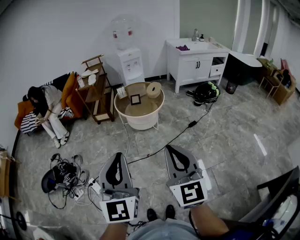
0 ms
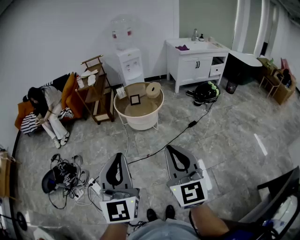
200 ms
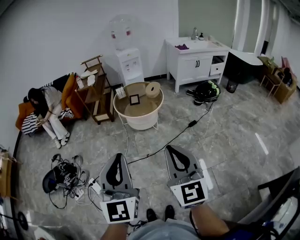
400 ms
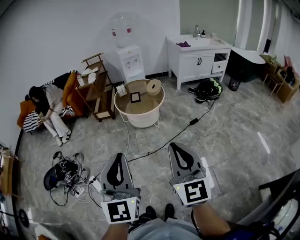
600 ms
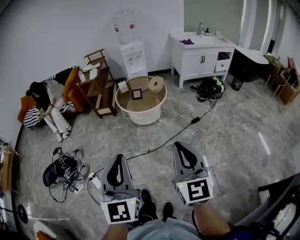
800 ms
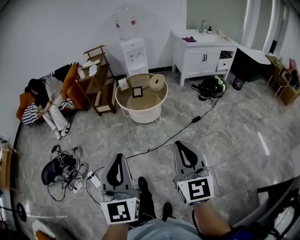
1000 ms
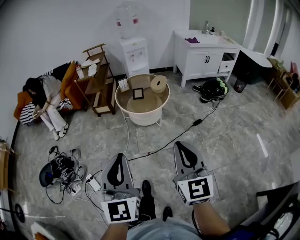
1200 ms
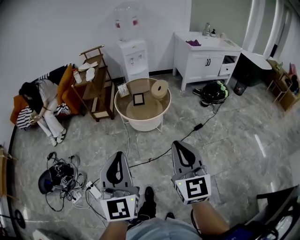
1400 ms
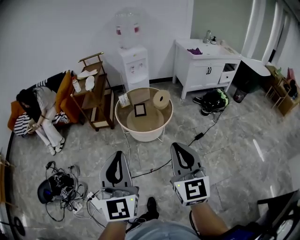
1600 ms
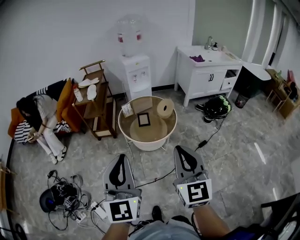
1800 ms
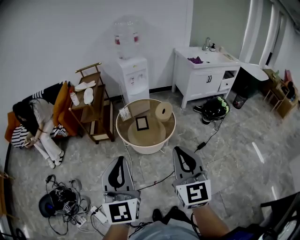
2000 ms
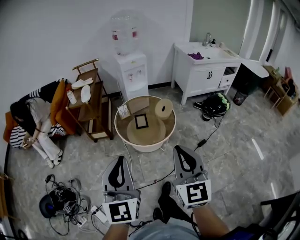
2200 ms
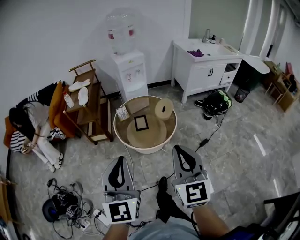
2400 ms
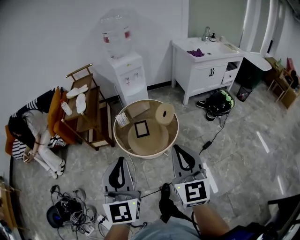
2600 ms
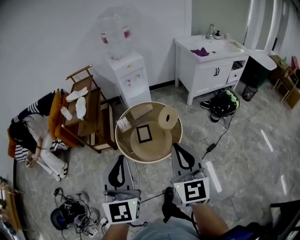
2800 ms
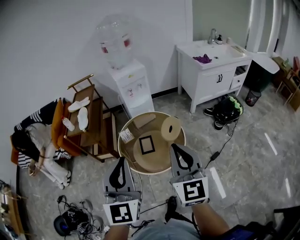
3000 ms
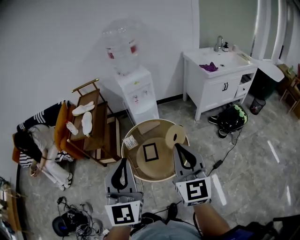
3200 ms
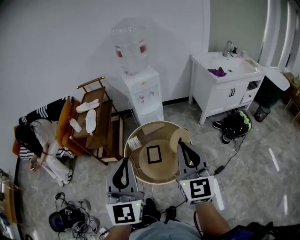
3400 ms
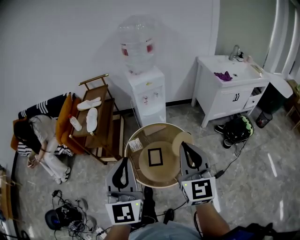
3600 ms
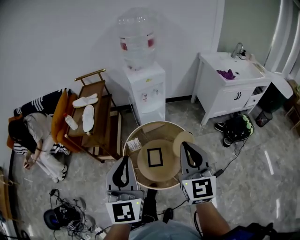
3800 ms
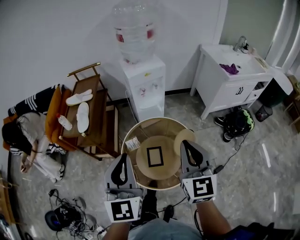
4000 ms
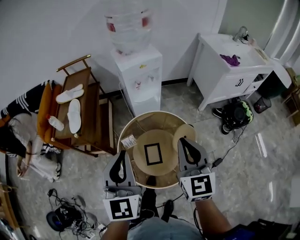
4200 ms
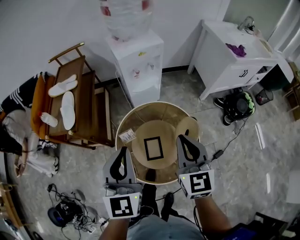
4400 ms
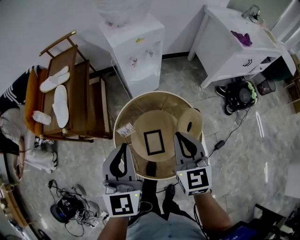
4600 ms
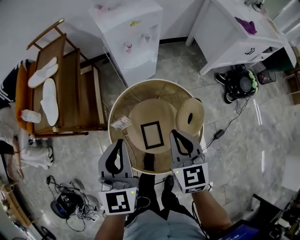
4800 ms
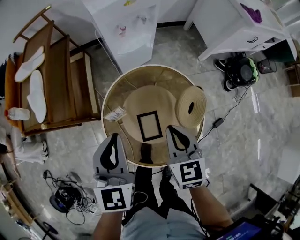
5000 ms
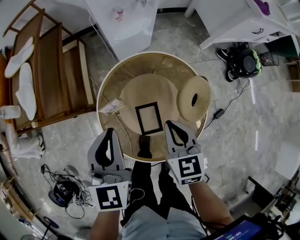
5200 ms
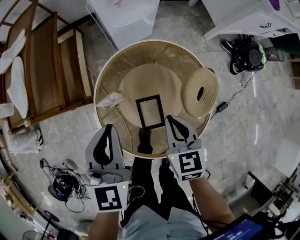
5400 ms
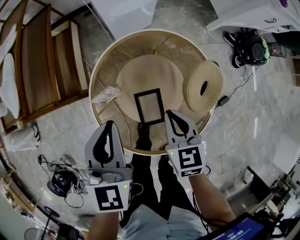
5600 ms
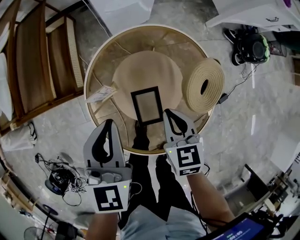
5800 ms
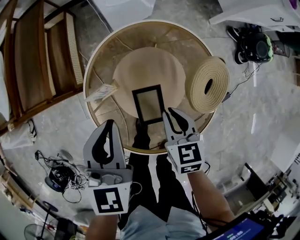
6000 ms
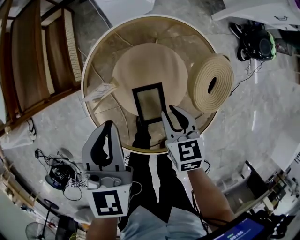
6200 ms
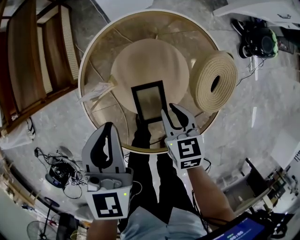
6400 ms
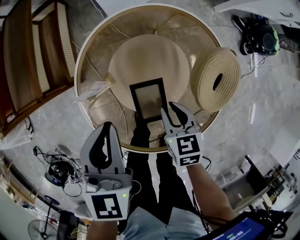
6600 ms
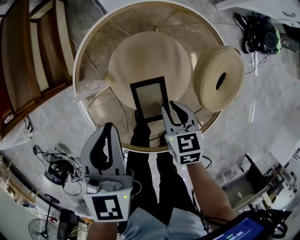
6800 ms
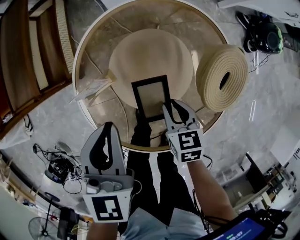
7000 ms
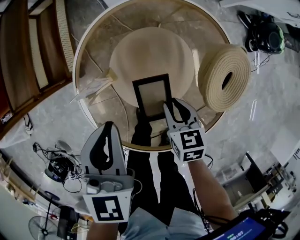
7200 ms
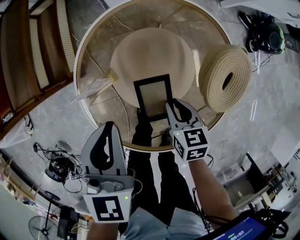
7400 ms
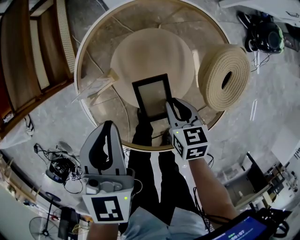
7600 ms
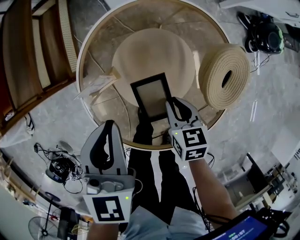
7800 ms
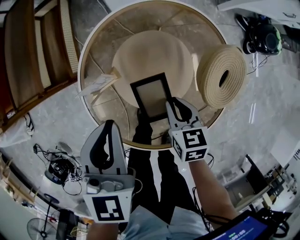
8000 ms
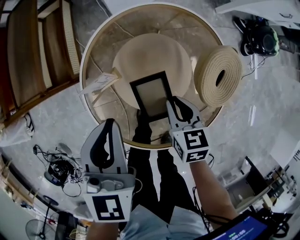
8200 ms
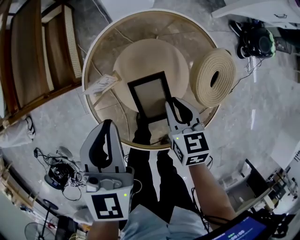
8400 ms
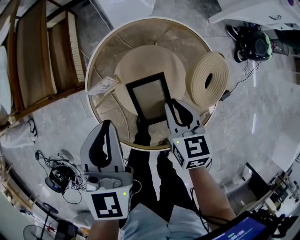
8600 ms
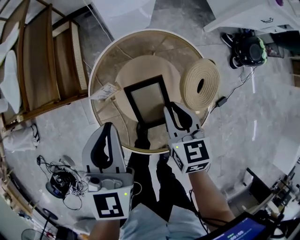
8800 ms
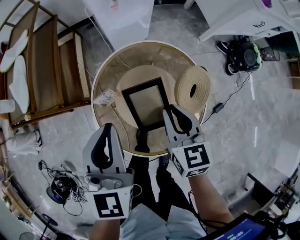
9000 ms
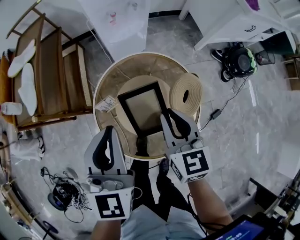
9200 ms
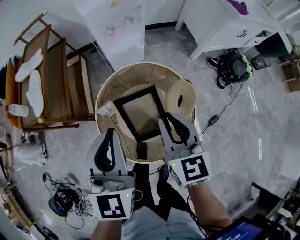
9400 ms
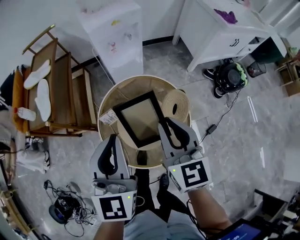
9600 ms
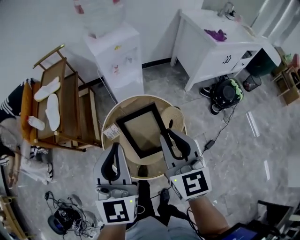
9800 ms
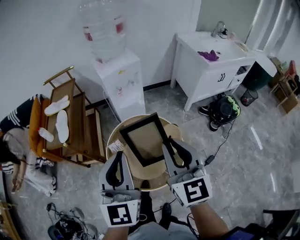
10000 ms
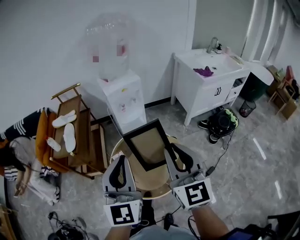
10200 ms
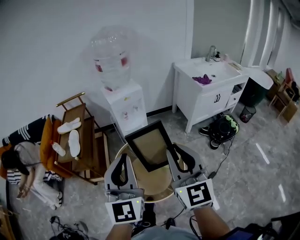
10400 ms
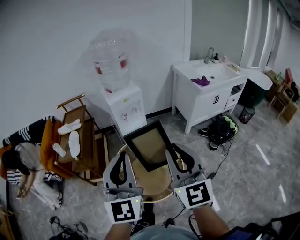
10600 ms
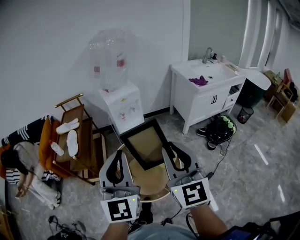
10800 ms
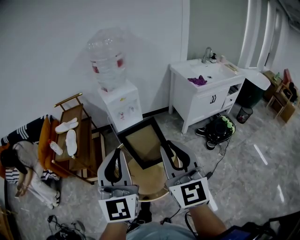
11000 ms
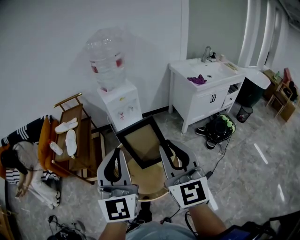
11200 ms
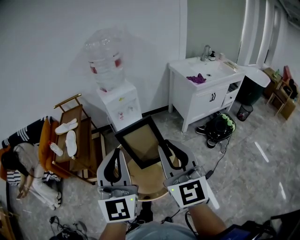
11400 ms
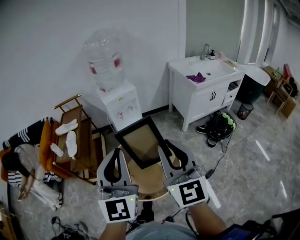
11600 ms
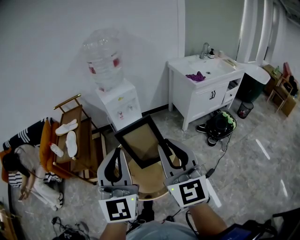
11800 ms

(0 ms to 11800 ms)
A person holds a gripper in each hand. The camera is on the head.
0 ms - 1400 ms: The grippers both shift forward by approximately 20 cm.
1400 ms - 3000 ms: The two grippers travel together, forward, roughly 50 cm.
3000 ms - 4400 ms: The right gripper is displaced forward and downward by some 35 cm. Meanwhile the left gripper moves forward, about 35 cm.
4400 ms - 6000 ms: The two grippers go roughly 35 cm downward. The left gripper rotates some 30 degrees, while the right gripper points its fingers roughly 30 degrees further downward.
6000 ms - 7400 ms: The left gripper heads downward, covering roughly 5 cm; the right gripper shifts roughly 10 cm downward.
7400 ms - 8800 ms: The grippers both shift upward by about 15 cm.
8800 ms - 10400 ms: The left gripper travels upward and backward by about 50 cm, and tips its fingers upward by approximately 30 degrees; the right gripper travels upward by some 50 cm, and tilts its fingers approximately 40 degrees upward.
10400 ms - 11800 ms: The grippers make only small movements.

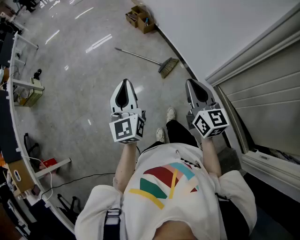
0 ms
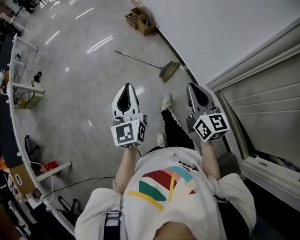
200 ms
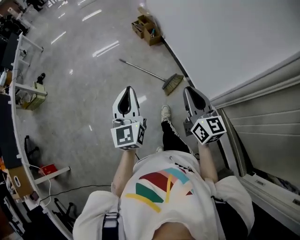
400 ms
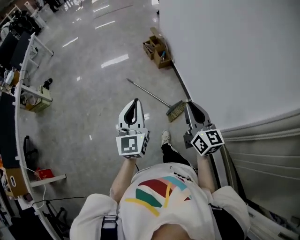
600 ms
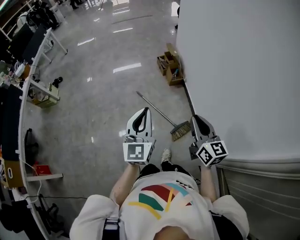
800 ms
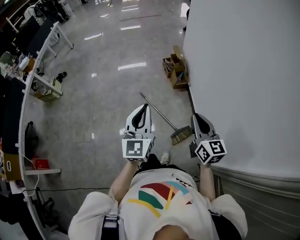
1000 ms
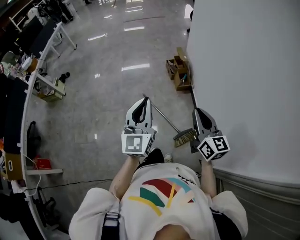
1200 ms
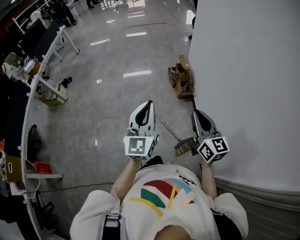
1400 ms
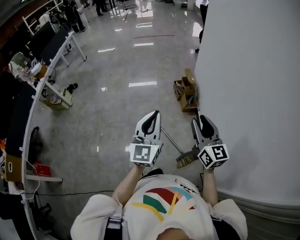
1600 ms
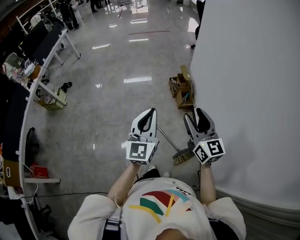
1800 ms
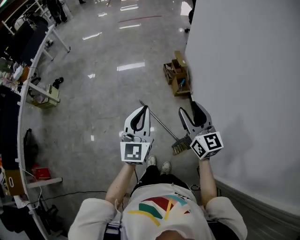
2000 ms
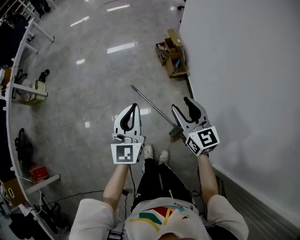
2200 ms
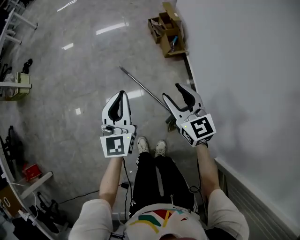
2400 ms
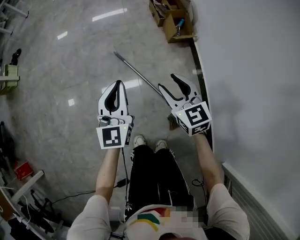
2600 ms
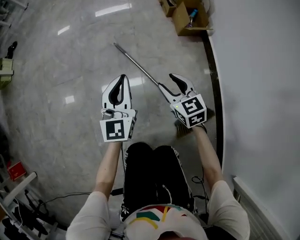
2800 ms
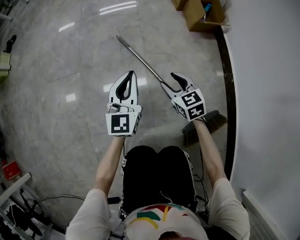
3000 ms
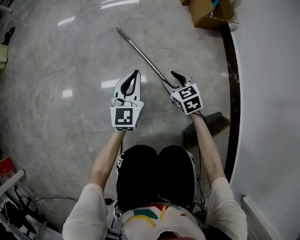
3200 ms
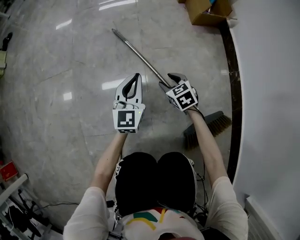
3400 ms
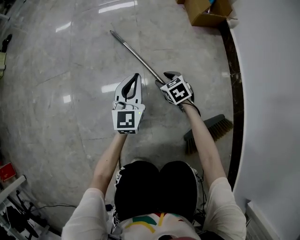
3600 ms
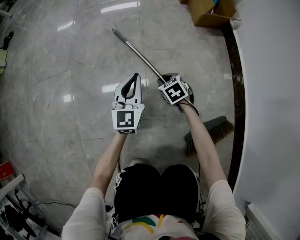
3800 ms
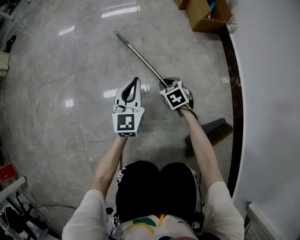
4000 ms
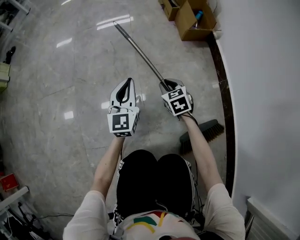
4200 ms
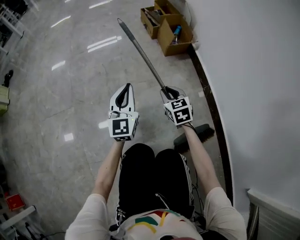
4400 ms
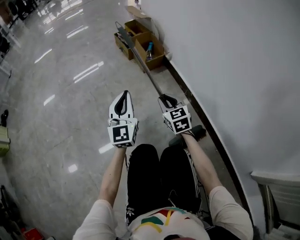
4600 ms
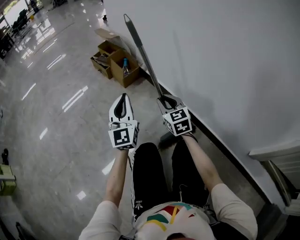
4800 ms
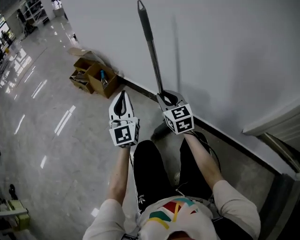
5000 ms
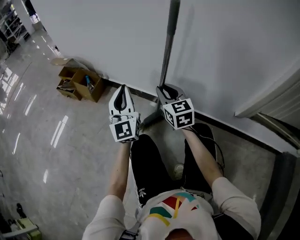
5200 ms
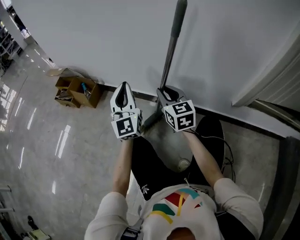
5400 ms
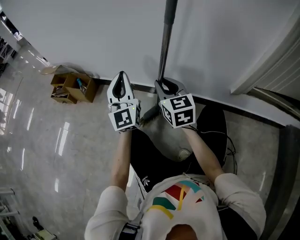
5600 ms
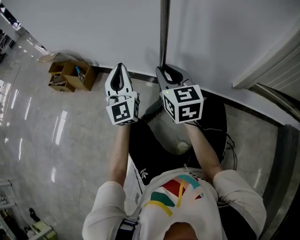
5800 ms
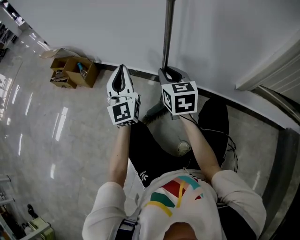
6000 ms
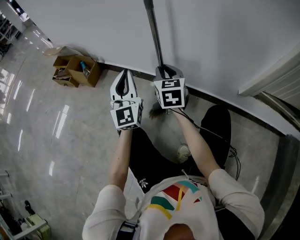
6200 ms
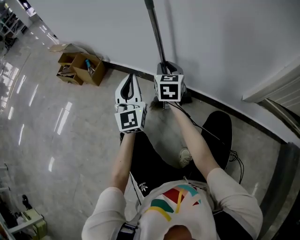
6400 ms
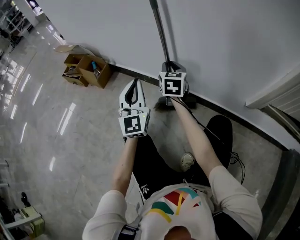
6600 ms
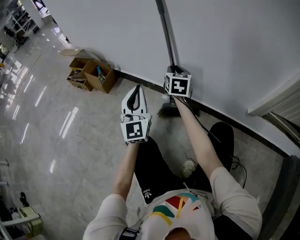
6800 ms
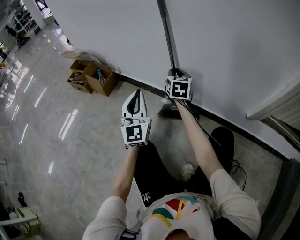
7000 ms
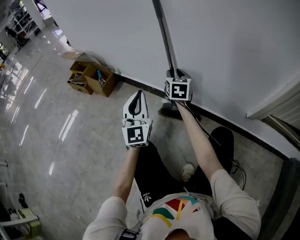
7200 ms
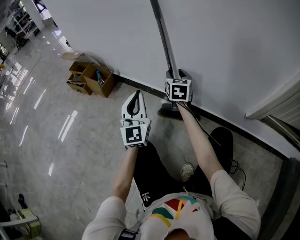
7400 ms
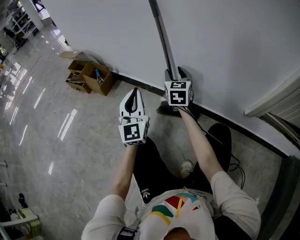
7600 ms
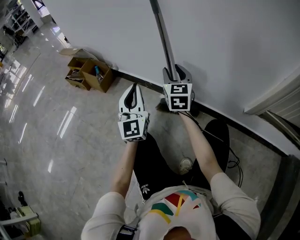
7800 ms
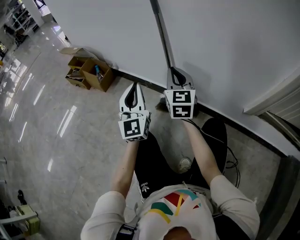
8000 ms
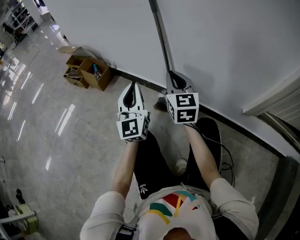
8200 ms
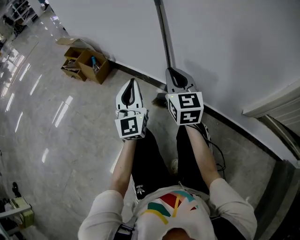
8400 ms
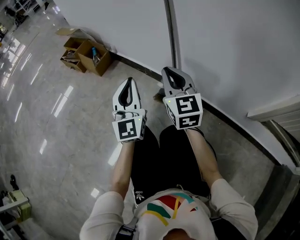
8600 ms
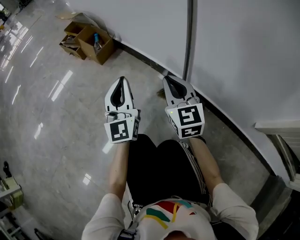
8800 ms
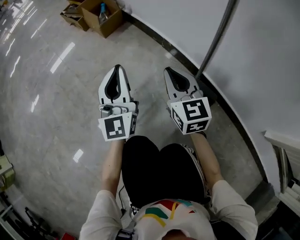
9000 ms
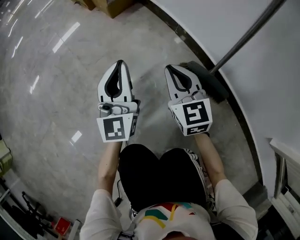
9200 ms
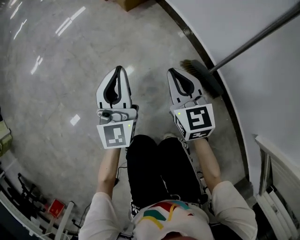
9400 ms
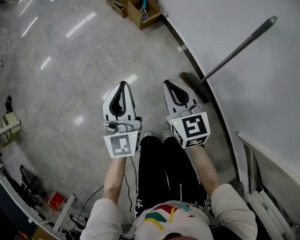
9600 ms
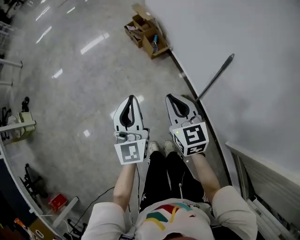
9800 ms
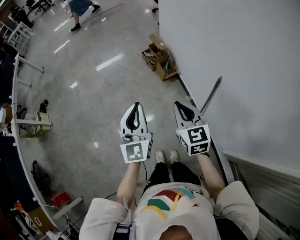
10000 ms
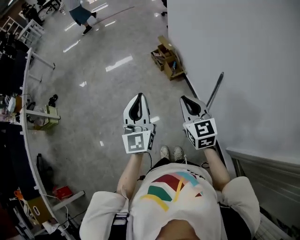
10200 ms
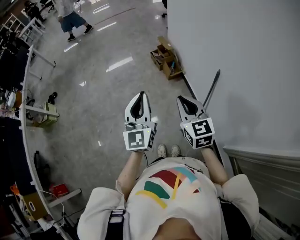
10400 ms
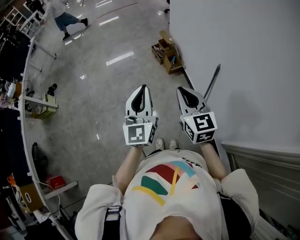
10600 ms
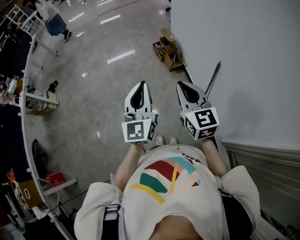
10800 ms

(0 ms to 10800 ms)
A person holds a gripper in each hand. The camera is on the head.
0 ms - 1600 ms: The pair of grippers is taken forward, some 50 cm. The right gripper swivels about 20 degrees, and opens.
1600 ms - 3000 ms: The two grippers go approximately 90 cm downward. The right gripper points its fingers some 40 degrees further downward, and opens.
3000 ms - 4600 ms: The left gripper changes place by some 15 cm. The right gripper goes downward and returns, approximately 20 cm each way, turns by some 30 degrees, and closes its fingers.
4600 ms - 6200 ms: The left gripper ends up some 25 cm from where it was, and swivels approximately 40 degrees. Meanwhile the right gripper changes place by about 30 cm, and turns by roughly 60 degrees.
6200 ms - 7800 ms: The right gripper opens.
7800 ms - 9200 ms: The two grippers go roughly 20 cm downward. The right gripper turns by roughly 40 degrees, and closes its fingers. The left gripper turns by some 20 degrees.
9200 ms - 10800 ms: The two grippers go roughly 80 cm upward. The left gripper swivels about 20 degrees, while the right gripper changes its angle by roughly 20 degrees.

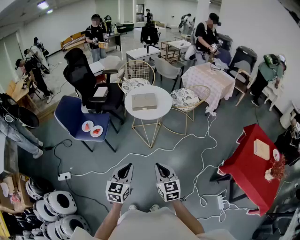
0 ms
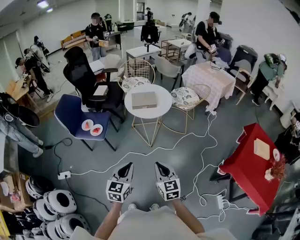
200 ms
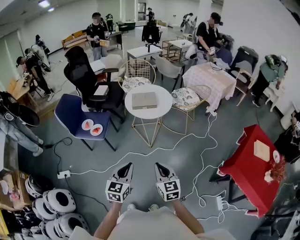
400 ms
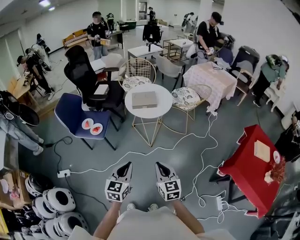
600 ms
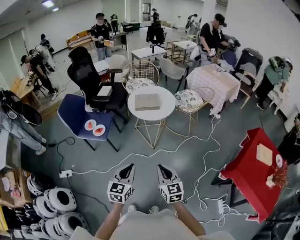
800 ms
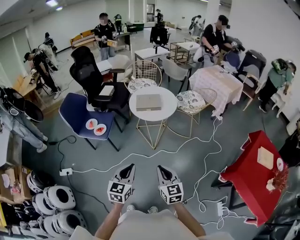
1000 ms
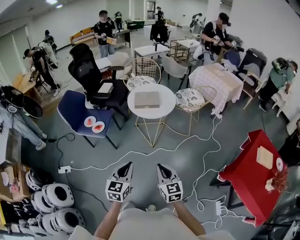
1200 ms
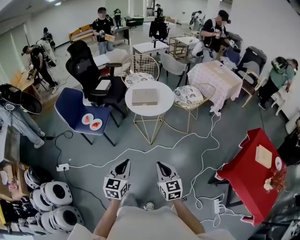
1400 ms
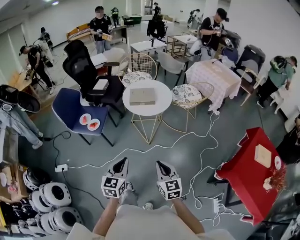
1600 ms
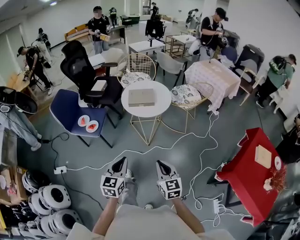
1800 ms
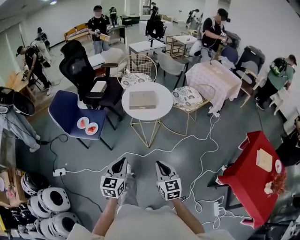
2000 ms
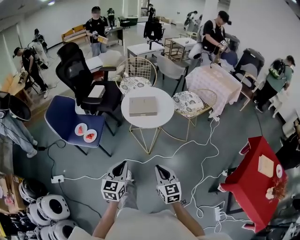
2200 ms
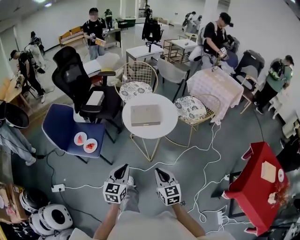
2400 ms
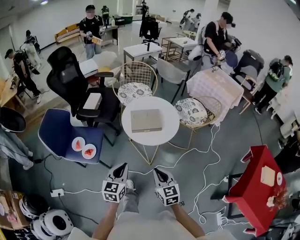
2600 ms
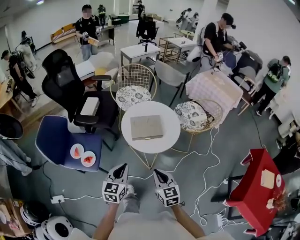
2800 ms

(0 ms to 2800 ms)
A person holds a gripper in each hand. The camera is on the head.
0 ms - 1400 ms: The right gripper is displaced to the right by some 5 cm.
1400 ms - 2800 ms: Both grippers move forward, approximately 35 cm.
